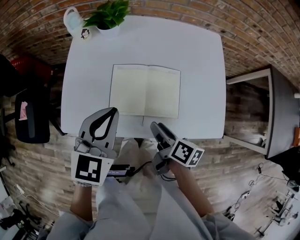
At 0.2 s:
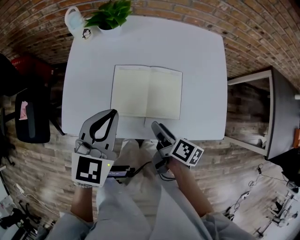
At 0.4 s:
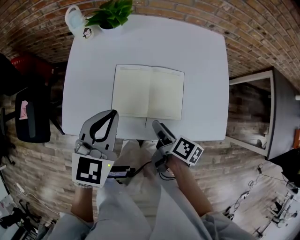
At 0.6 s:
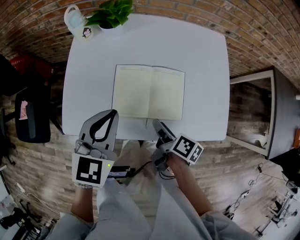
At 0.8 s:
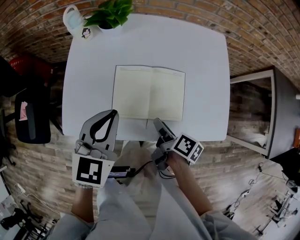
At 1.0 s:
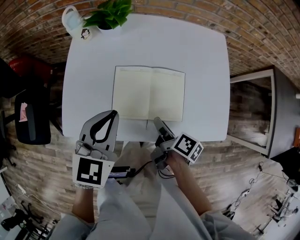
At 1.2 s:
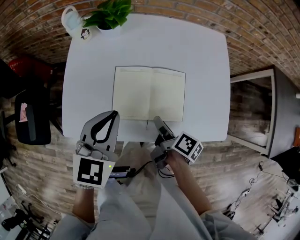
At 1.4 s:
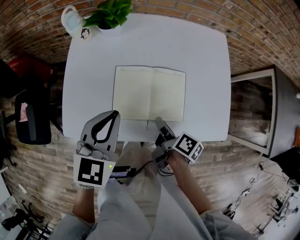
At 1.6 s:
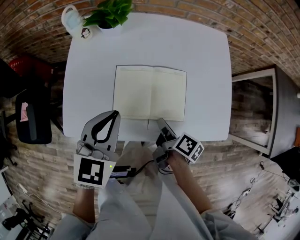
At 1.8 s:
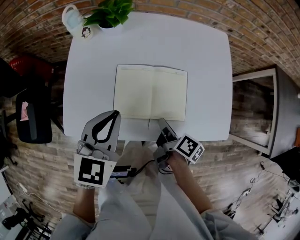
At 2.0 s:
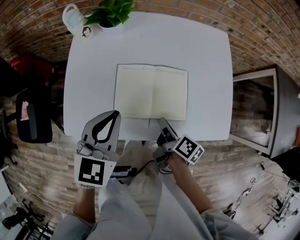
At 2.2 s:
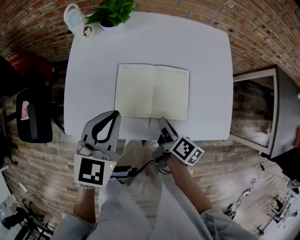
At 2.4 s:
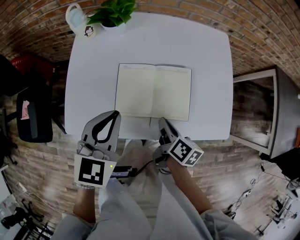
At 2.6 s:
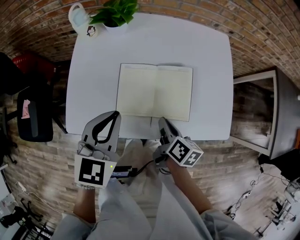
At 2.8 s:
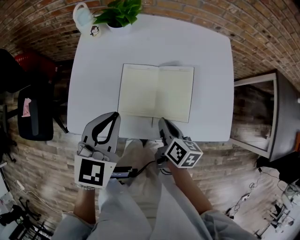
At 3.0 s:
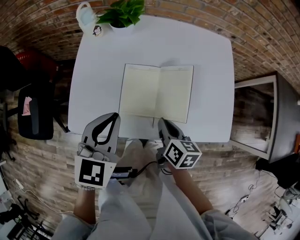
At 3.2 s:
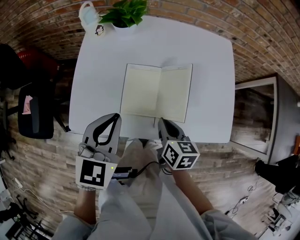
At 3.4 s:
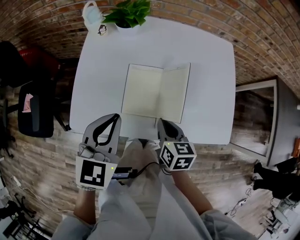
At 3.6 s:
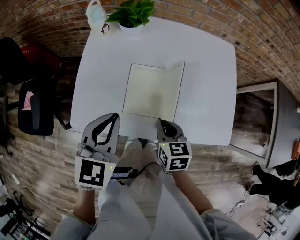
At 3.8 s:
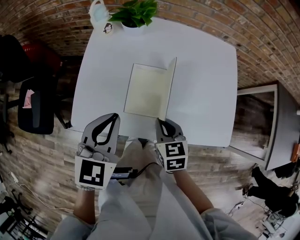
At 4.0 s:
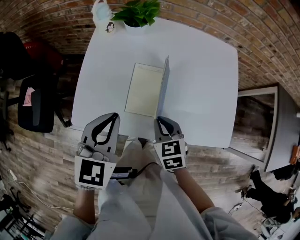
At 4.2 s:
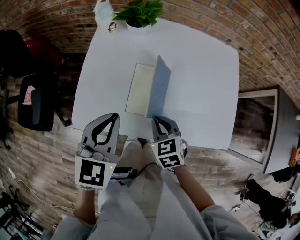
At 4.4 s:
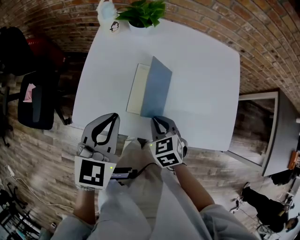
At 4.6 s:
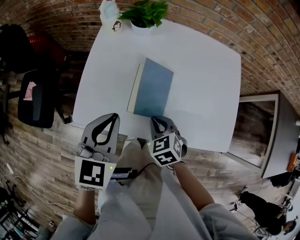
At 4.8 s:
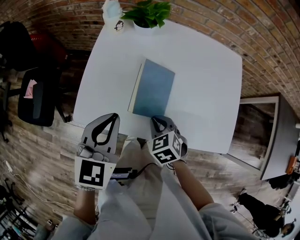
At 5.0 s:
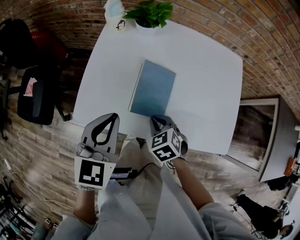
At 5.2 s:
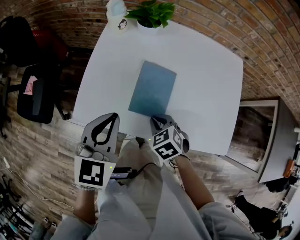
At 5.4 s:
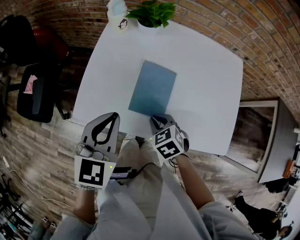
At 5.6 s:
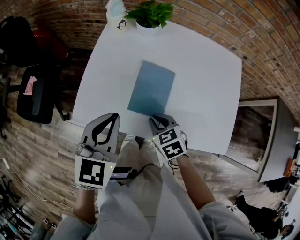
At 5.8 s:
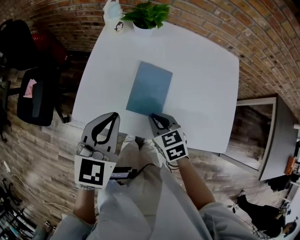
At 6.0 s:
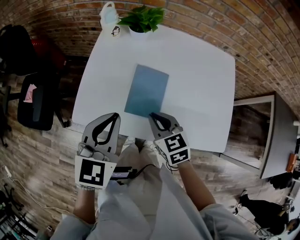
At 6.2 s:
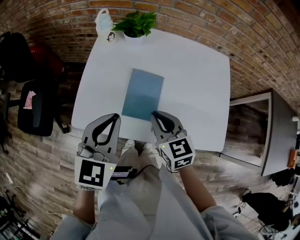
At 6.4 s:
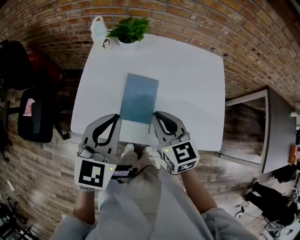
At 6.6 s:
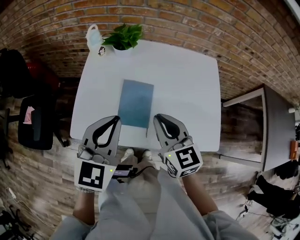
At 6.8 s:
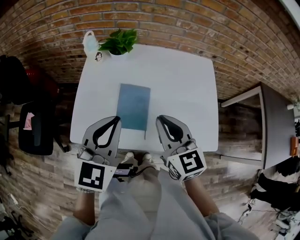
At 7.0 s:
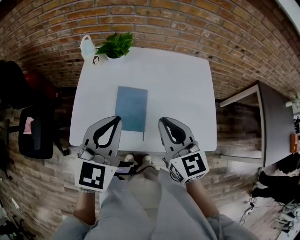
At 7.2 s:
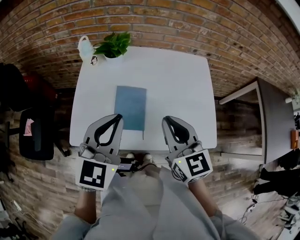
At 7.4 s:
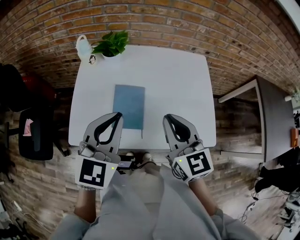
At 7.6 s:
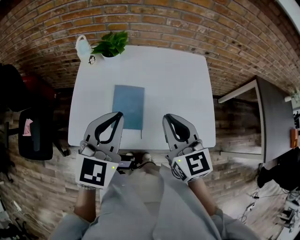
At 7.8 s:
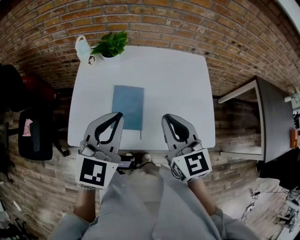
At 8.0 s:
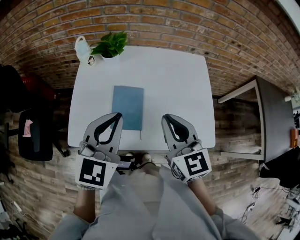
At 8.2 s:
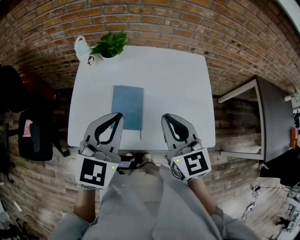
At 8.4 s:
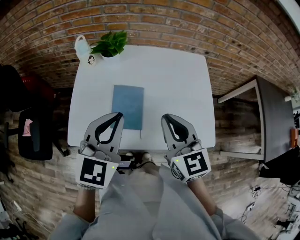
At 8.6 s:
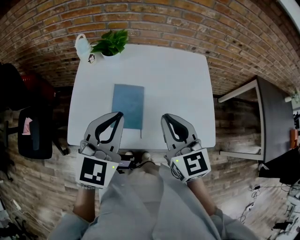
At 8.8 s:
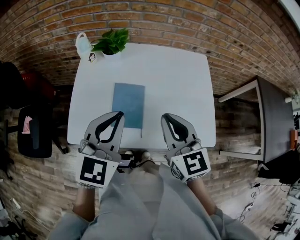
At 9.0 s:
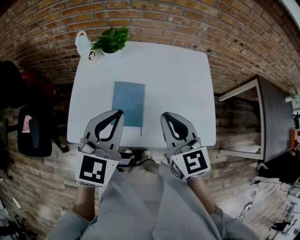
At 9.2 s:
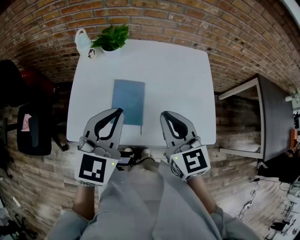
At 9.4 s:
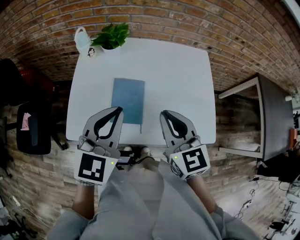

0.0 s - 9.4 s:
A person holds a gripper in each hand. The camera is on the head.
0.0 s - 1.6 s: The right gripper moves about 5 cm, and closes.
1.6 s - 3.2 s: The right gripper changes place by about 5 cm, and twists approximately 50 degrees counterclockwise, seen from behind.
3.2 s - 4.8 s: The right gripper heads to the left, covering roughly 5 cm, and twists about 50 degrees counterclockwise, seen from behind.
4.8 s - 6.2 s: The right gripper shifts roughly 10 cm upward, and turns by about 30 degrees. Meanwhile the left gripper ends up approximately 5 cm from where it was.
6.2 s - 7.8 s: The left gripper travels to the right and upward by roughly 10 cm. The right gripper is displaced upward and to the right by about 15 cm.
7.8 s - 9.4 s: The grippers stay close to where they were, moving slightly.

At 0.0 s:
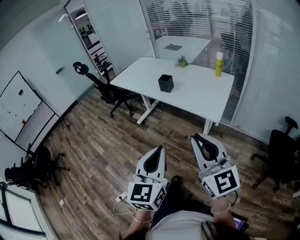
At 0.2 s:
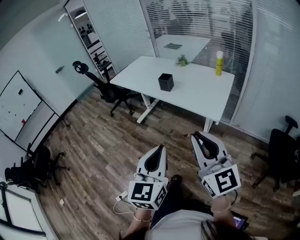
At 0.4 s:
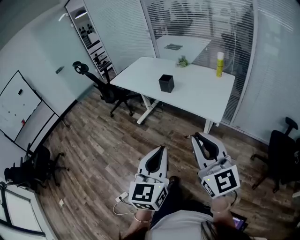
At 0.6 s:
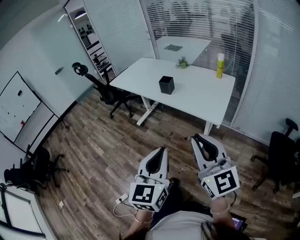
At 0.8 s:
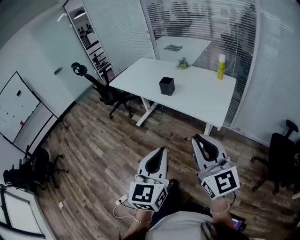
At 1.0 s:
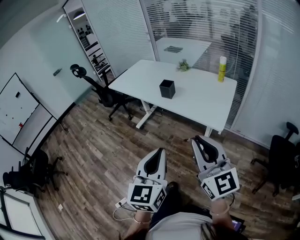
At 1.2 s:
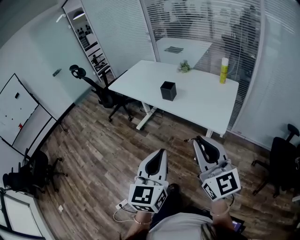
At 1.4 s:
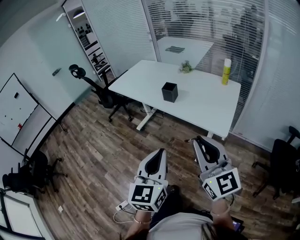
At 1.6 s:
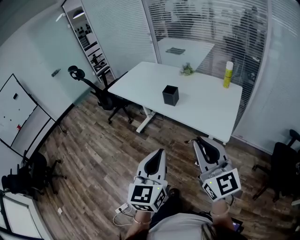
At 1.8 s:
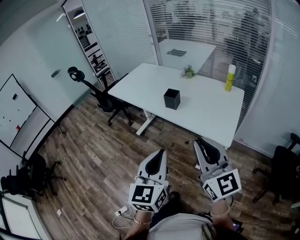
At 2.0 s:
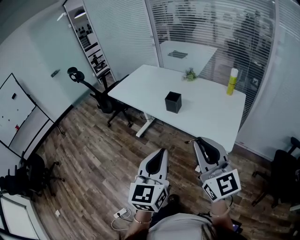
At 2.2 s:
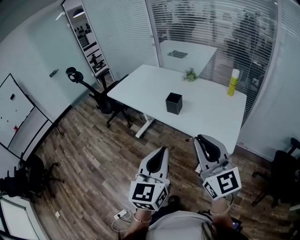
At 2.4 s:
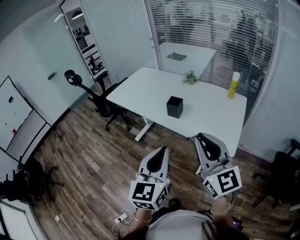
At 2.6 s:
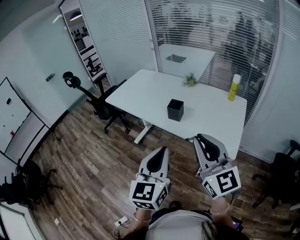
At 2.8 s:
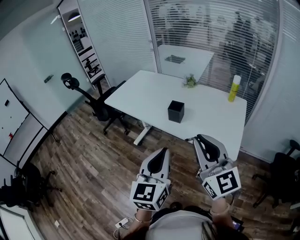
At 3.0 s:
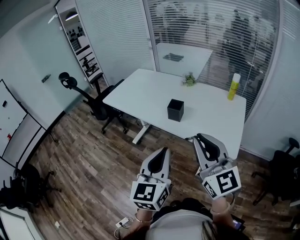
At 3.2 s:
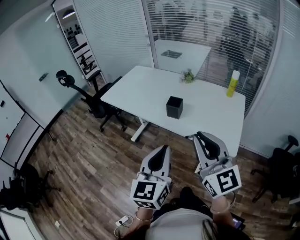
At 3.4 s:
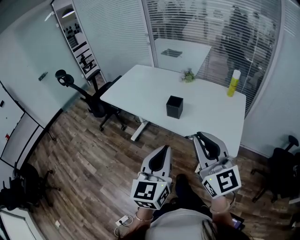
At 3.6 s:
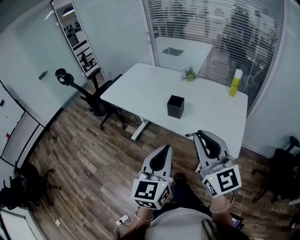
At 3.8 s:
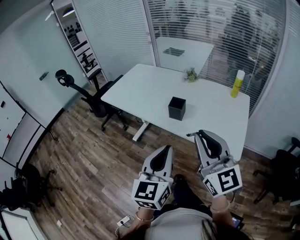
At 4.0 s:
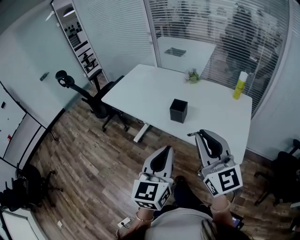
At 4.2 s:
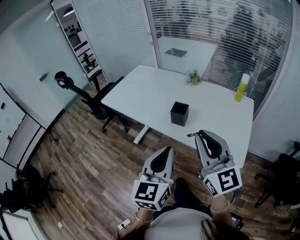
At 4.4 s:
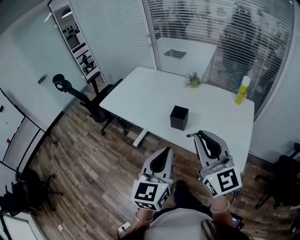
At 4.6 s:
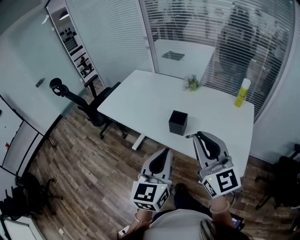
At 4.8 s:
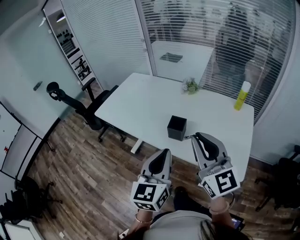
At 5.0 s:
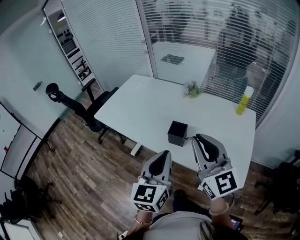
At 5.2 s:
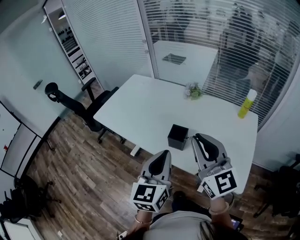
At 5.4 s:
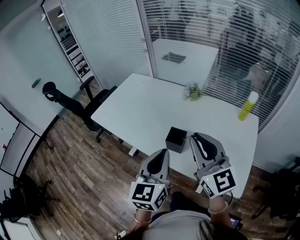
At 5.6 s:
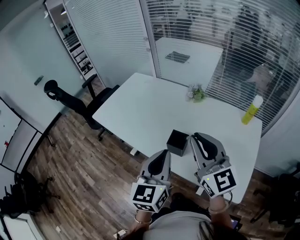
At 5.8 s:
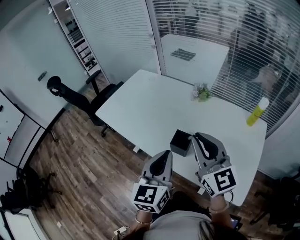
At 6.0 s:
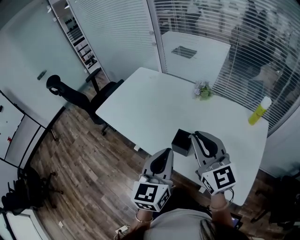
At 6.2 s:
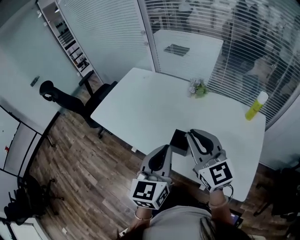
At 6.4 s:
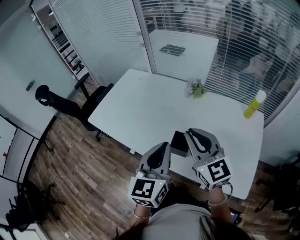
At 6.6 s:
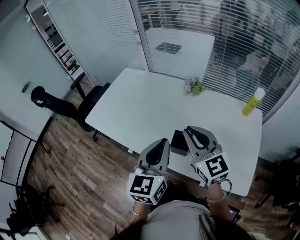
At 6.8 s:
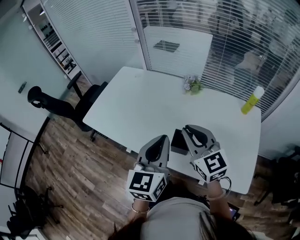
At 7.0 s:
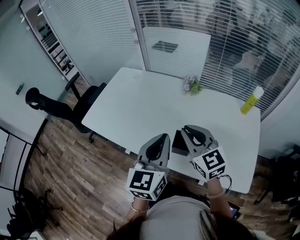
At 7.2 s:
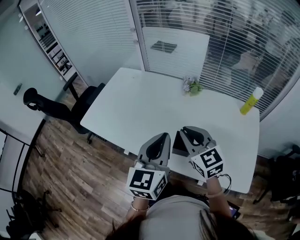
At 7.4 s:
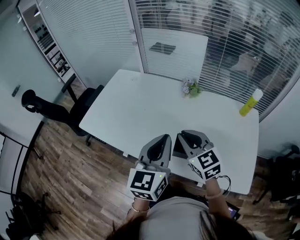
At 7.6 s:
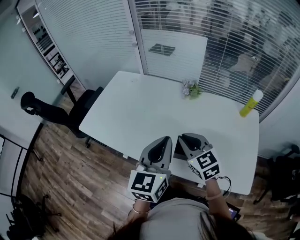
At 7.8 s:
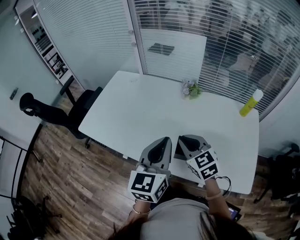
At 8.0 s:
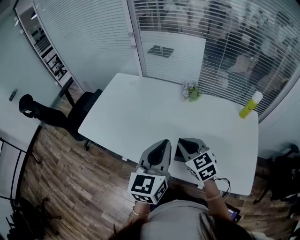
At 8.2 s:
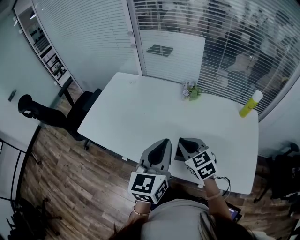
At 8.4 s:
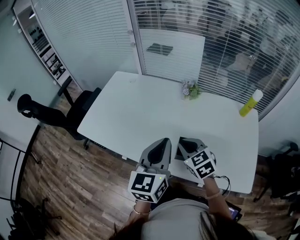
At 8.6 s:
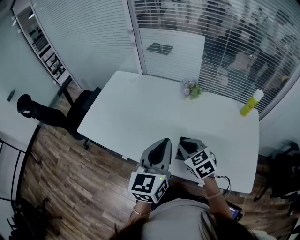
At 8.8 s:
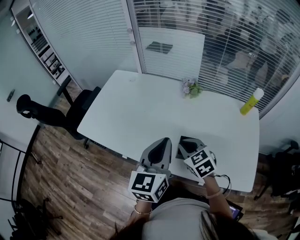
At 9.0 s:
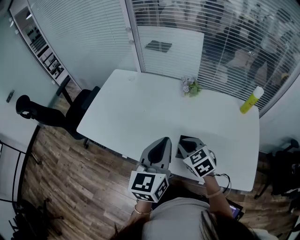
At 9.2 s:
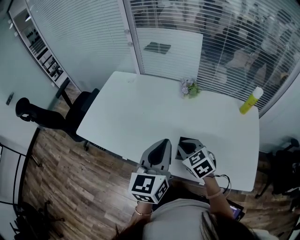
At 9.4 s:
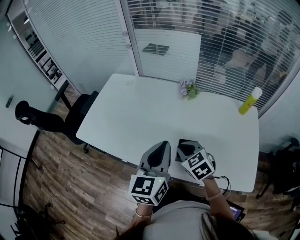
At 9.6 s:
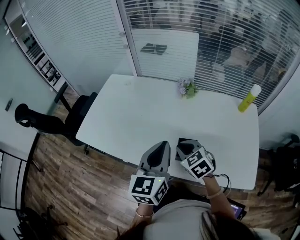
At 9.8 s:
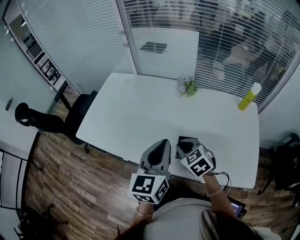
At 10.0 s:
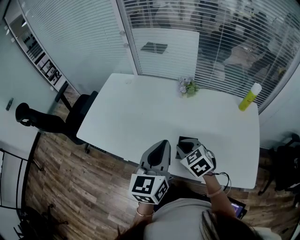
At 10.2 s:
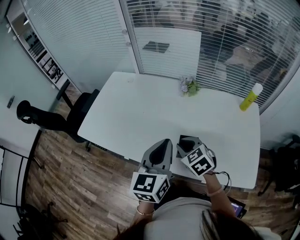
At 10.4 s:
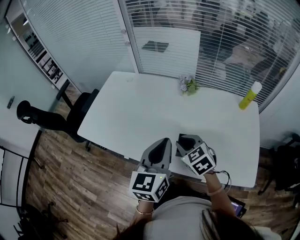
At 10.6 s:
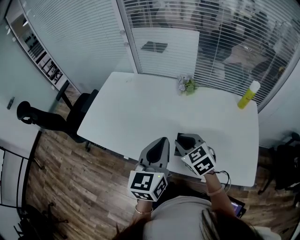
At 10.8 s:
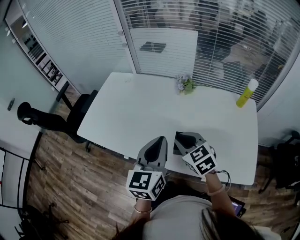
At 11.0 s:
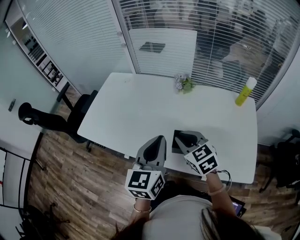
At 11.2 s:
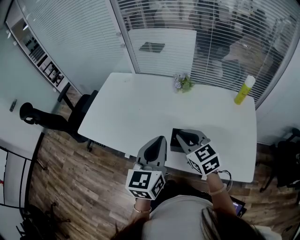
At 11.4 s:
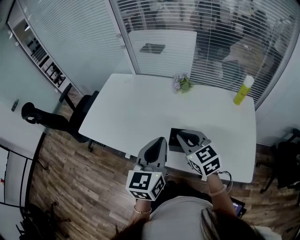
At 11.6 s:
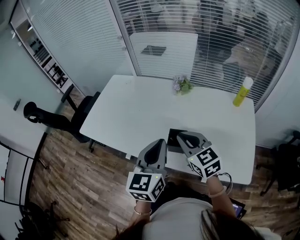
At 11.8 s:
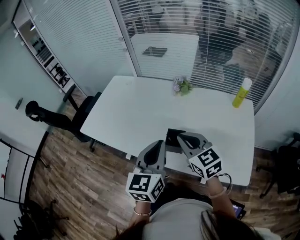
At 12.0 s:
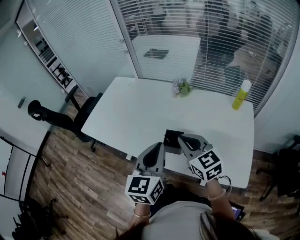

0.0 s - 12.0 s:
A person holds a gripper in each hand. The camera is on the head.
0.0 s - 1.6 s: The grippers both shift forward by approximately 15 cm.
1.6 s - 3.0 s: The right gripper shifts approximately 15 cm forward and to the left; the left gripper is displaced forward by about 15 cm.
3.0 s - 4.4 s: Both grippers move forward, roughly 10 cm.
4.4 s - 6.0 s: The grippers both shift forward by roughly 20 cm.
6.0 s - 7.6 s: The left gripper moves forward, roughly 10 cm. Meanwhile the right gripper goes about 15 cm downward, forward and to the left, and swivels some 30 degrees.
7.6 s - 9.0 s: The right gripper moves downward, about 5 cm.
9.0 s - 10.4 s: Both grippers stay about where they are.
10.4 s - 12.0 s: The left gripper shifts approximately 5 cm backward. The right gripper shifts about 15 cm upward, to the right and backward, and turns by roughly 20 degrees.

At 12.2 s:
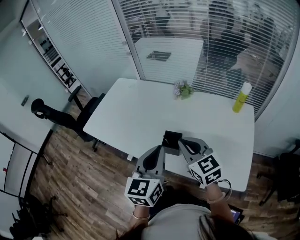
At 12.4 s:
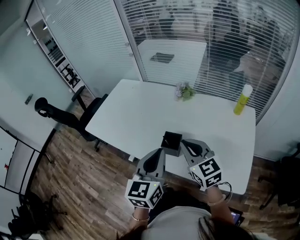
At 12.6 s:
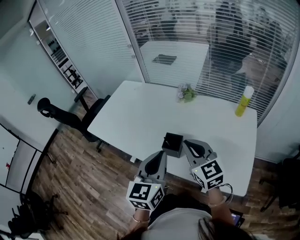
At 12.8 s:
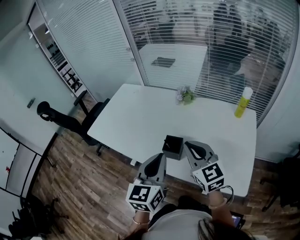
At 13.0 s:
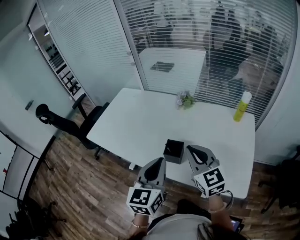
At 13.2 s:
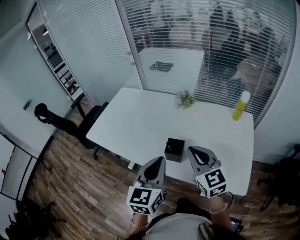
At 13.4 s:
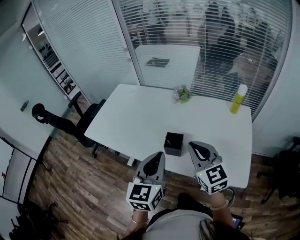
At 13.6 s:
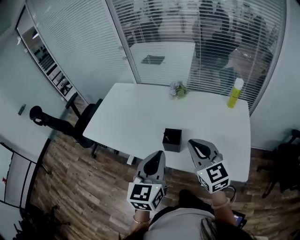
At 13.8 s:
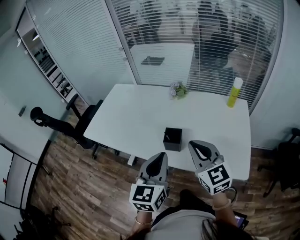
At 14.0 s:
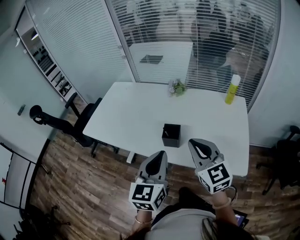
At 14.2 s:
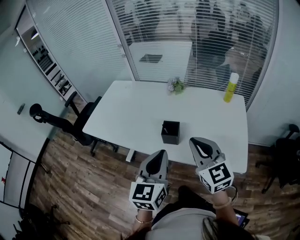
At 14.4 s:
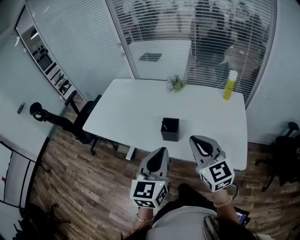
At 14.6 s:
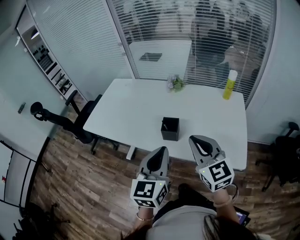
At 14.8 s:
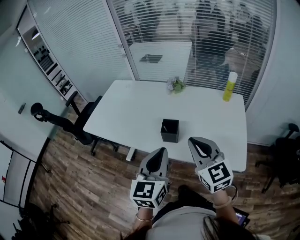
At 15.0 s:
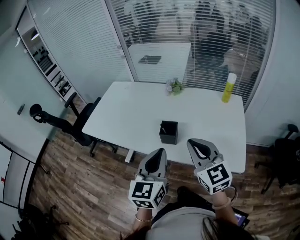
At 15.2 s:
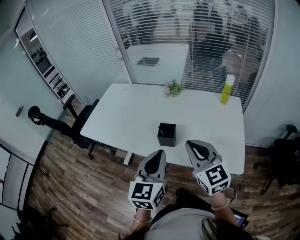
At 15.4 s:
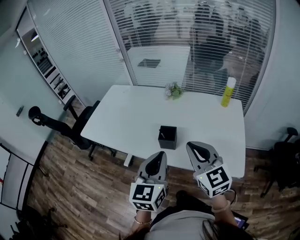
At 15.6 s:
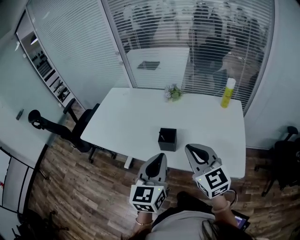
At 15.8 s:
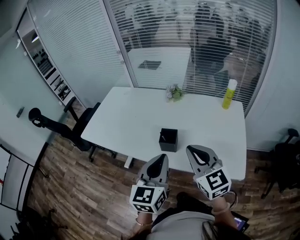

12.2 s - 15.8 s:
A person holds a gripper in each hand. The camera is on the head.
12.2 s - 14.0 s: Both grippers travel together backward, about 10 cm.
14.0 s - 15.8 s: There are only small adjustments of the grippers.
